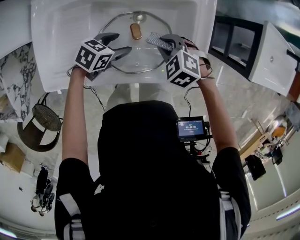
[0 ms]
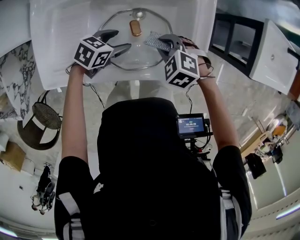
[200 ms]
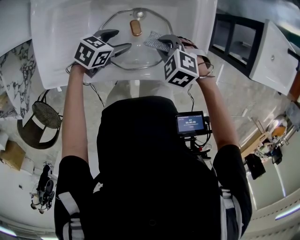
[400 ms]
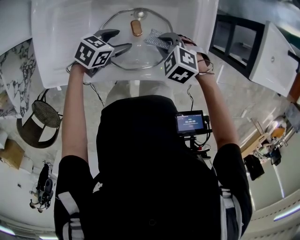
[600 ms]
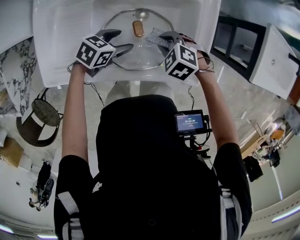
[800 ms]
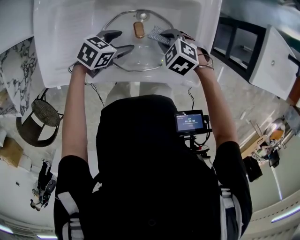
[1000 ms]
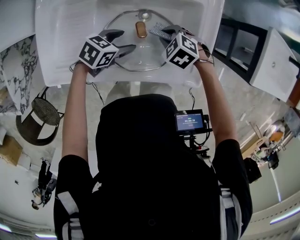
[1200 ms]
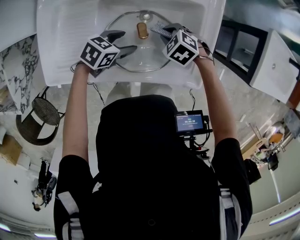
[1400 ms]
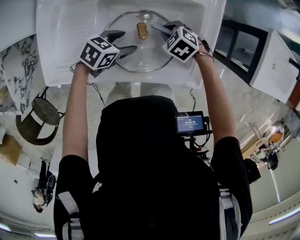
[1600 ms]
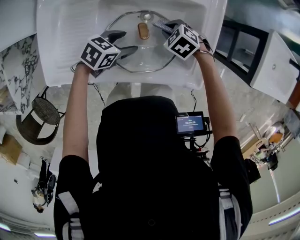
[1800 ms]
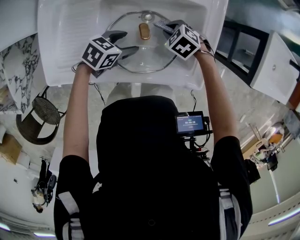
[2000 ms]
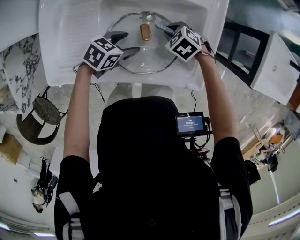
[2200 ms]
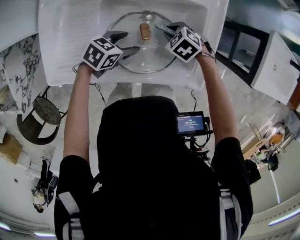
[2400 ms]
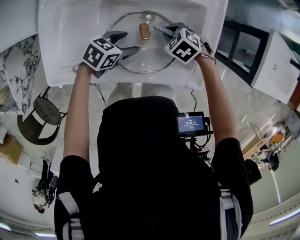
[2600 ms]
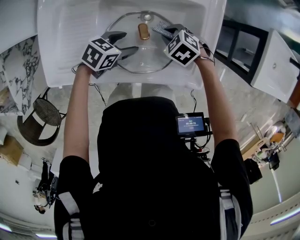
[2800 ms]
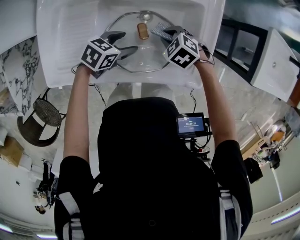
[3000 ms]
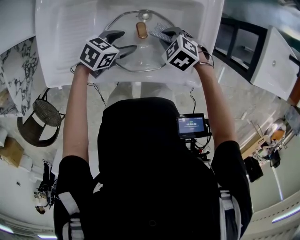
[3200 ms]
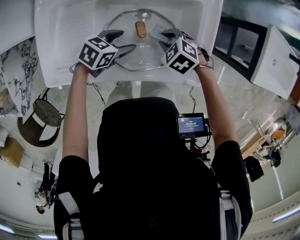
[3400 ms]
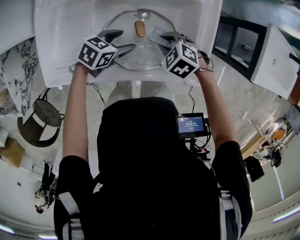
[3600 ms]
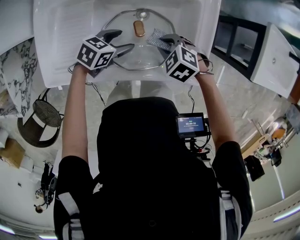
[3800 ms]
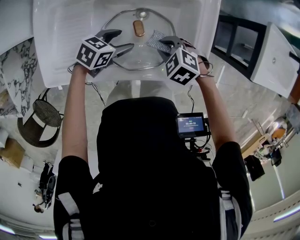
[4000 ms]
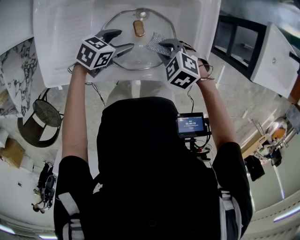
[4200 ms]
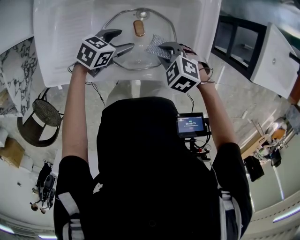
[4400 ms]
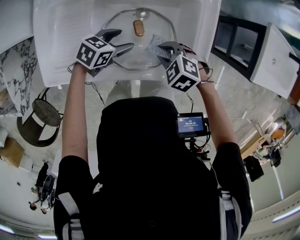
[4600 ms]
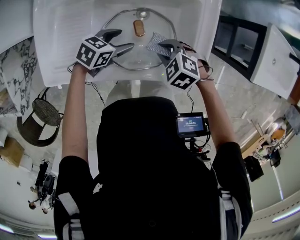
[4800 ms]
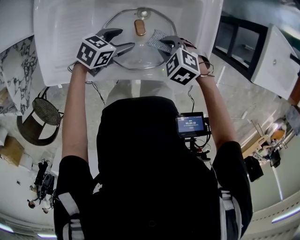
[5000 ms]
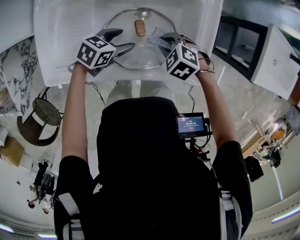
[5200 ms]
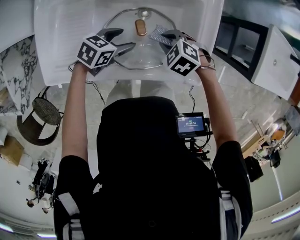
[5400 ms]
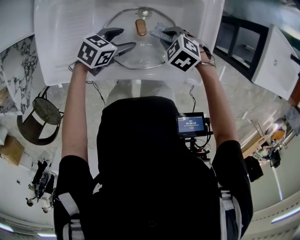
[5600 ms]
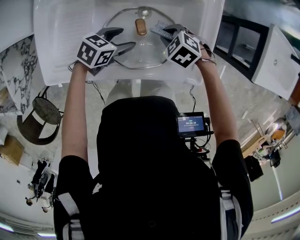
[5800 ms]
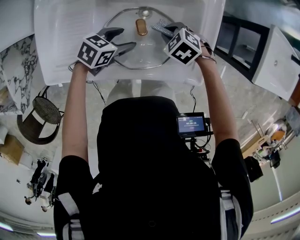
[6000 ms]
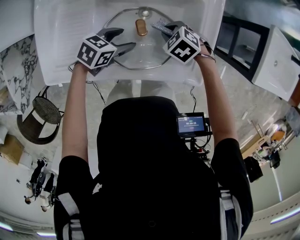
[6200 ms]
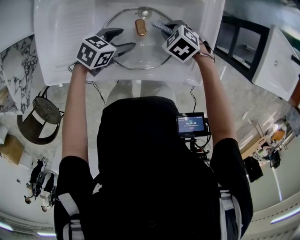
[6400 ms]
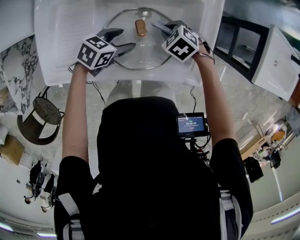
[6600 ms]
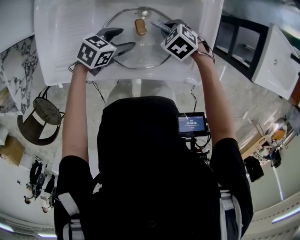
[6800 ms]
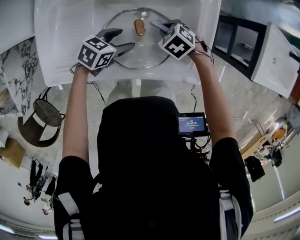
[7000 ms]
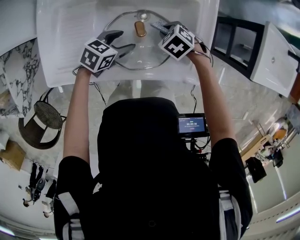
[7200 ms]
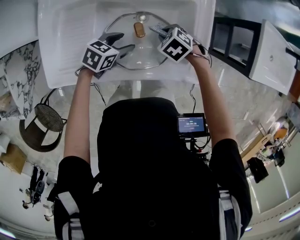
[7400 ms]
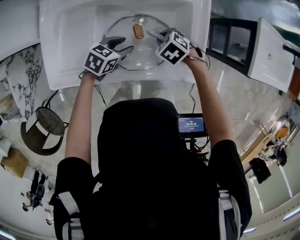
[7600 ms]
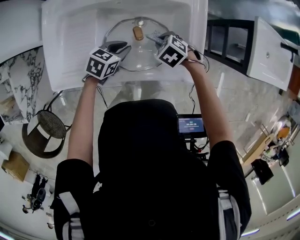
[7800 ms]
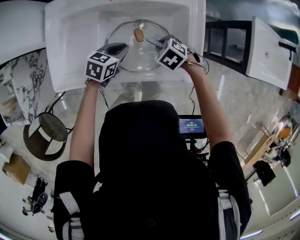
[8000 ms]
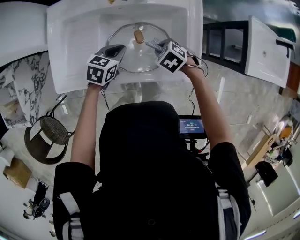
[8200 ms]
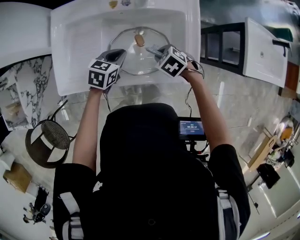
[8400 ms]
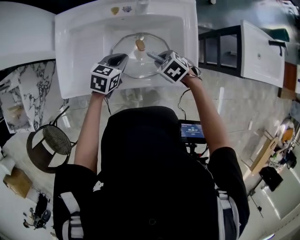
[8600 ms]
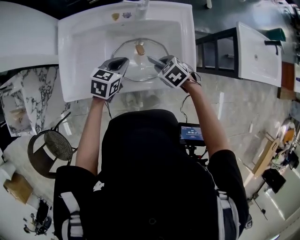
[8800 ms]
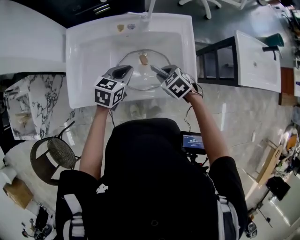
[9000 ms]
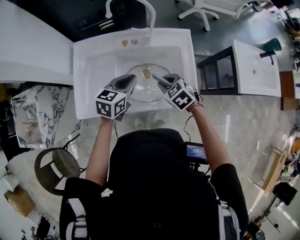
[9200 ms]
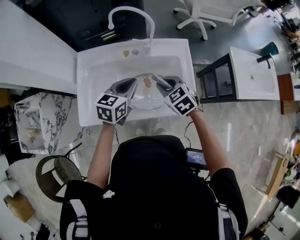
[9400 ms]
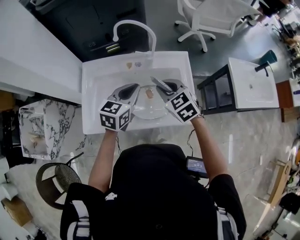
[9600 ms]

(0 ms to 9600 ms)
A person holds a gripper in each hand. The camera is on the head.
0 ms - 1600 ms: The right gripper moves downward, some 5 cm.
1600 ms - 3200 ms: The grippers stay close to where they were, moving slightly.
3200 ms - 4800 ms: The right gripper moves about 5 cm.
4800 ms - 6400 ms: The right gripper shifts by some 10 cm.
6400 ms - 8000 ms: The left gripper closes. Meanwhile the right gripper changes place by some 5 cm.
8000 ms - 9600 ms: The two grippers go about 25 cm upward. The right gripper points its fingers roughly 40 degrees further upward, while the left gripper swivels approximately 30 degrees.

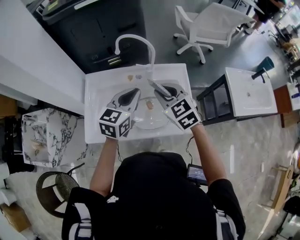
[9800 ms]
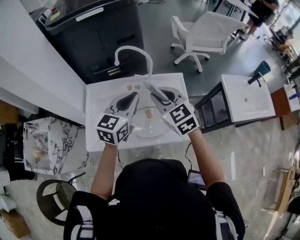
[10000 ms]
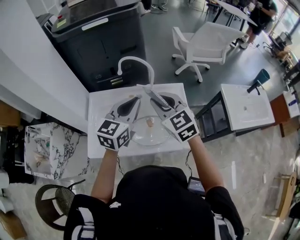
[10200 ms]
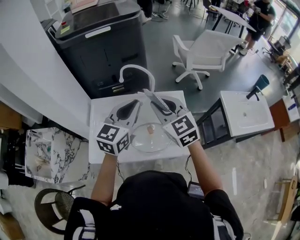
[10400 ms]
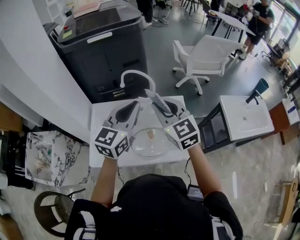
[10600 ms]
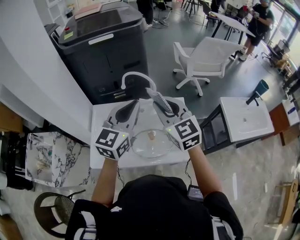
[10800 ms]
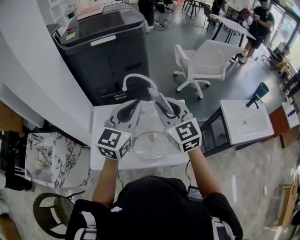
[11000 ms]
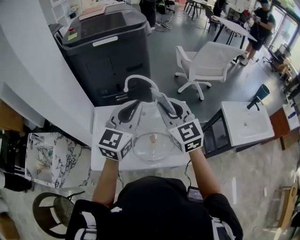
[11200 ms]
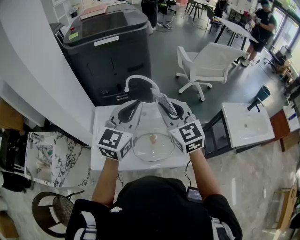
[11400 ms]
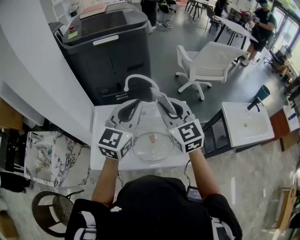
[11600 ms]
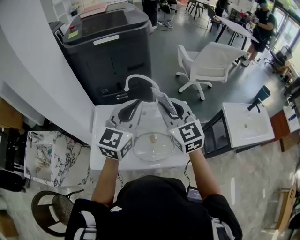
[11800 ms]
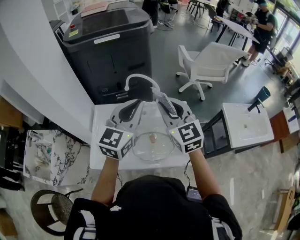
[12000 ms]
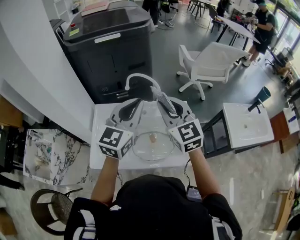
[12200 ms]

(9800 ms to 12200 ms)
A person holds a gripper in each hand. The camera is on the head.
9800 ms - 11000 ms: Both grippers move upward, approximately 15 cm. The left gripper turns by about 20 degrees. The right gripper rotates approximately 20 degrees.
11000 ms - 12200 ms: The grippers stay close to where they were, moving slightly.

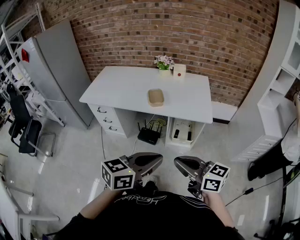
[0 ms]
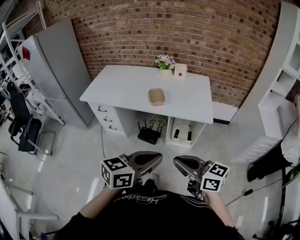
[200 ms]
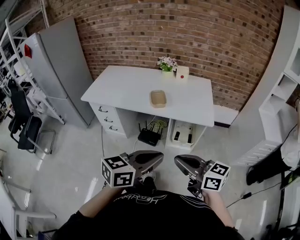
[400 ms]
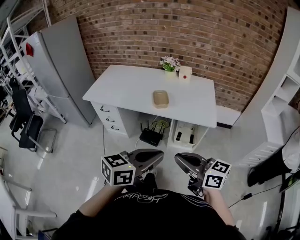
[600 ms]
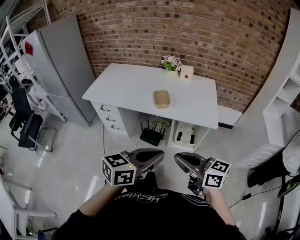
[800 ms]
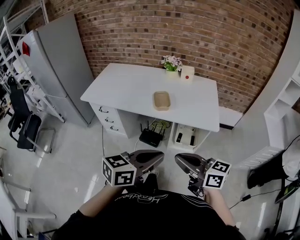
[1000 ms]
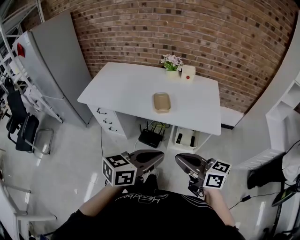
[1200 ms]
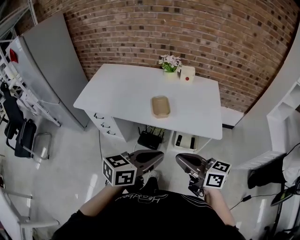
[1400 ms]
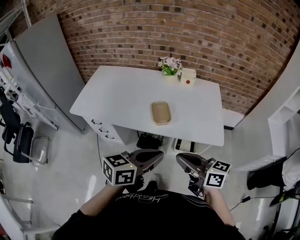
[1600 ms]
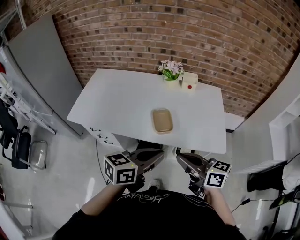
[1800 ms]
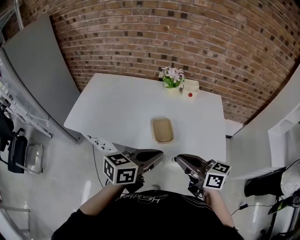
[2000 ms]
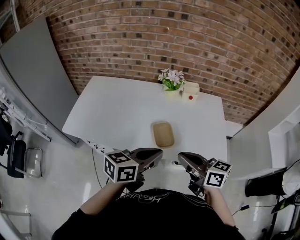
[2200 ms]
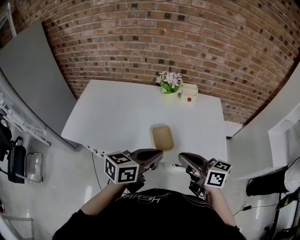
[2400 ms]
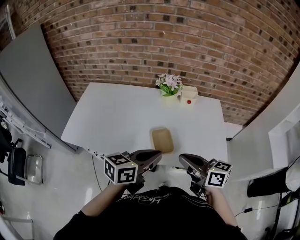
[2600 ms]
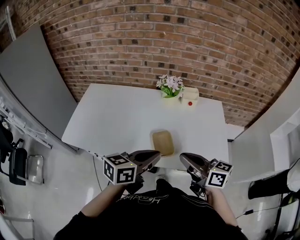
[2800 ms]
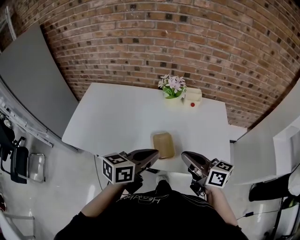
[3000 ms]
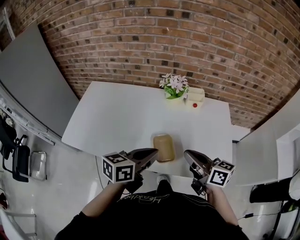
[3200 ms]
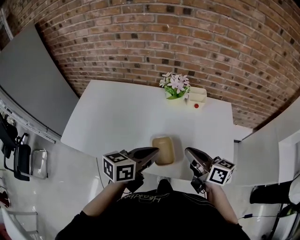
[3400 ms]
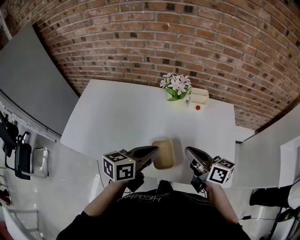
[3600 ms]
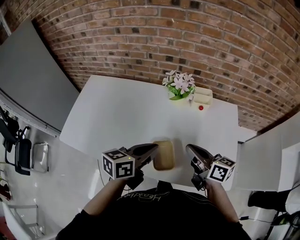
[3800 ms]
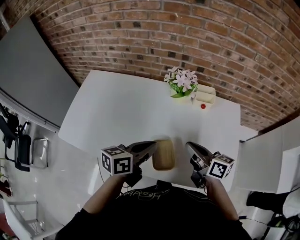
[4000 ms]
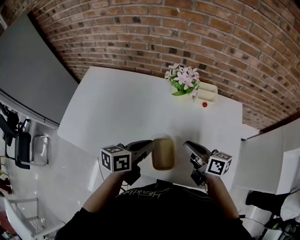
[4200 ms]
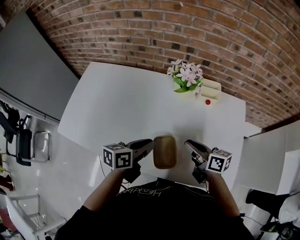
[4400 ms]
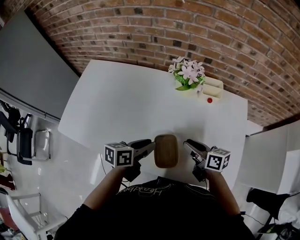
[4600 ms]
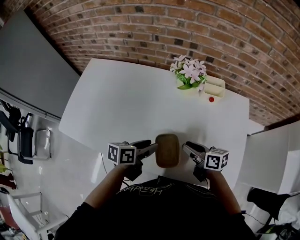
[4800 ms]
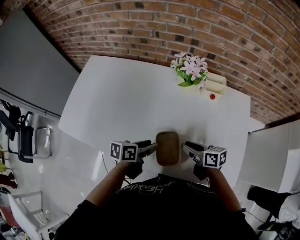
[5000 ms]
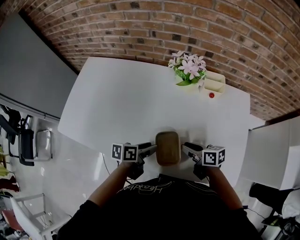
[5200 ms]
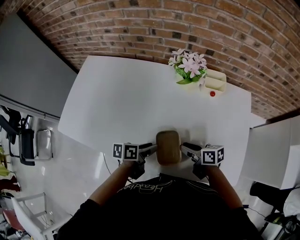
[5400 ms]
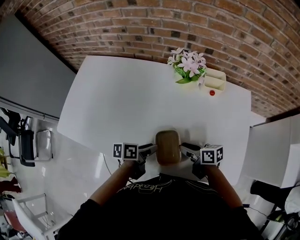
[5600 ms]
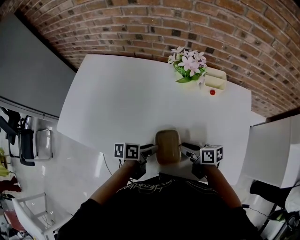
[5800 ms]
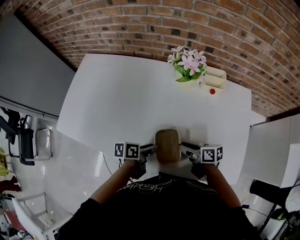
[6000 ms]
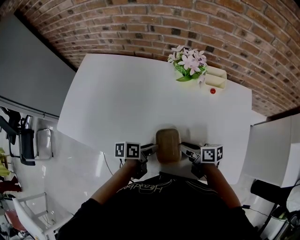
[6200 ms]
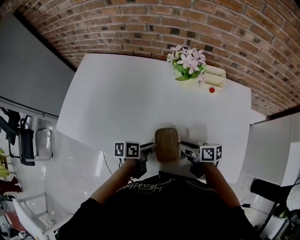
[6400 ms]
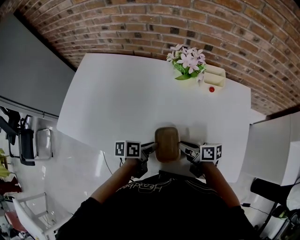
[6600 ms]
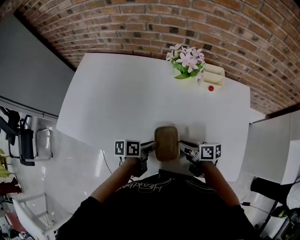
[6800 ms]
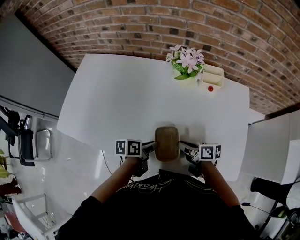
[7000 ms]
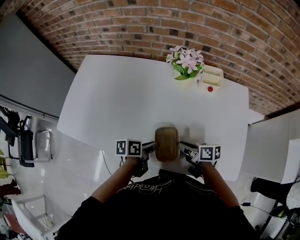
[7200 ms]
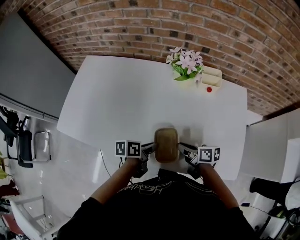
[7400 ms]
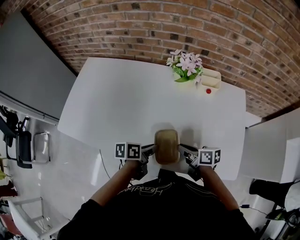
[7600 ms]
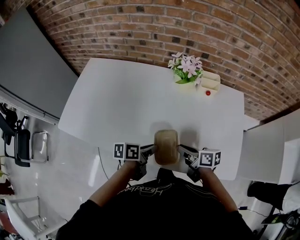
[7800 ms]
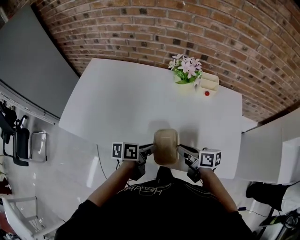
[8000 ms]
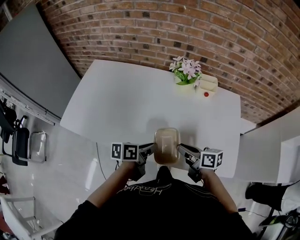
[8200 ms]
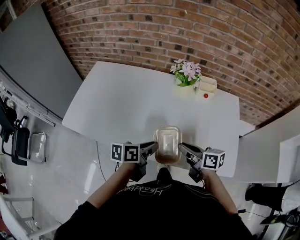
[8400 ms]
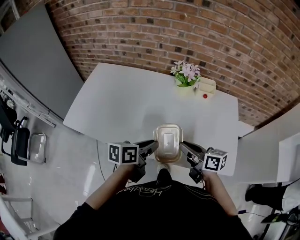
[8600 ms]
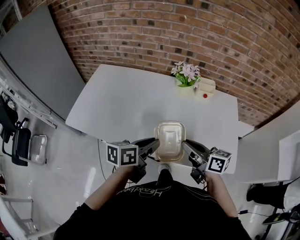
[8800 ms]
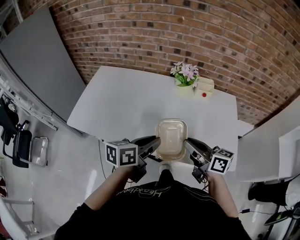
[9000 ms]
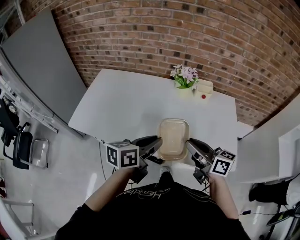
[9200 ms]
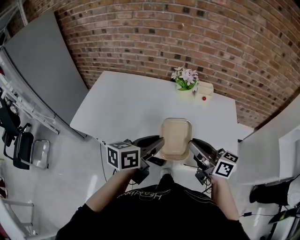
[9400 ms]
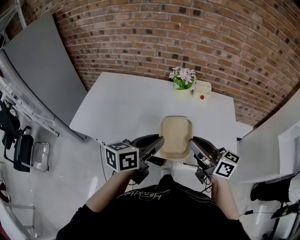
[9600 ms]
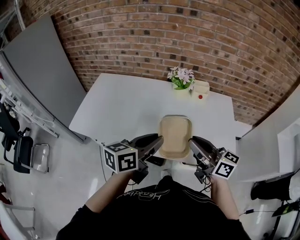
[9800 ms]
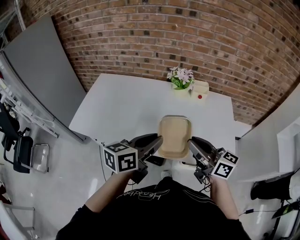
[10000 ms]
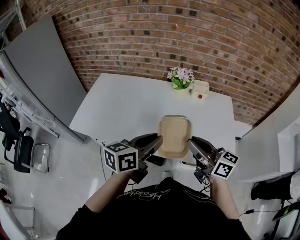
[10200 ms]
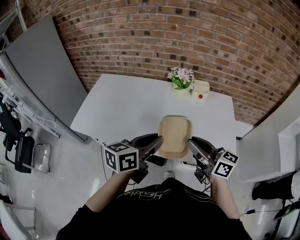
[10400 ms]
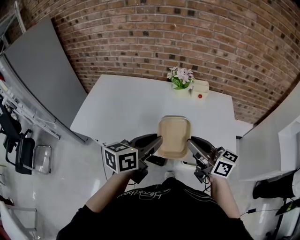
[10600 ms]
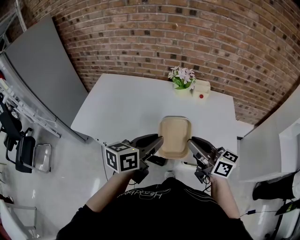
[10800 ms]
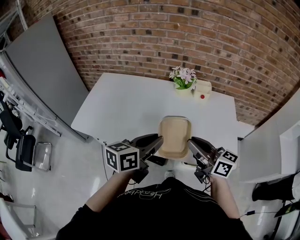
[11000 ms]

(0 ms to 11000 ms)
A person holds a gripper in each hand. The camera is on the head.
0 ms - 1600 ms: The grippers both shift forward by approximately 25 cm.
1600 ms - 3200 ms: The grippers both shift forward by about 25 cm.
3200 ms - 4800 ms: The grippers both shift downward and forward by approximately 20 cm. The right gripper swivels roughly 20 degrees, and opens; the left gripper rotates roughly 30 degrees, and opens up.
4800 ms - 6200 ms: The two grippers go approximately 5 cm downward.
6200 ms - 7800 ms: The left gripper moves approximately 5 cm, and closes, while the right gripper shifts by approximately 5 cm.
7800 ms - 9400 ms: The left gripper is displaced upward by about 20 cm, and changes its angle by about 30 degrees; the right gripper heads upward and backward, covering some 25 cm, and rotates approximately 40 degrees.
9400 ms - 11000 ms: The grippers make only small movements.

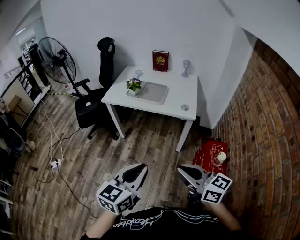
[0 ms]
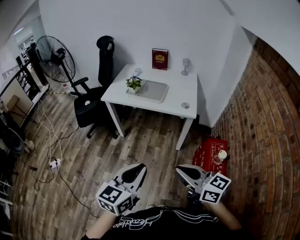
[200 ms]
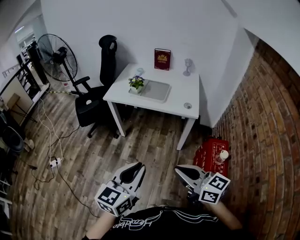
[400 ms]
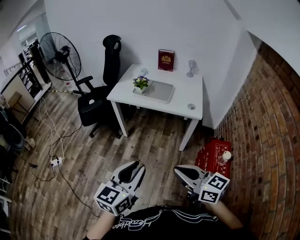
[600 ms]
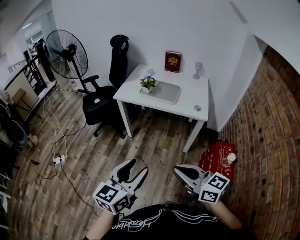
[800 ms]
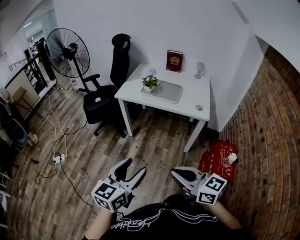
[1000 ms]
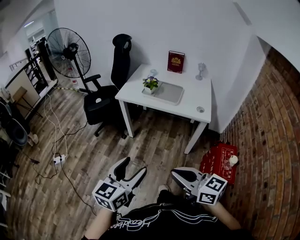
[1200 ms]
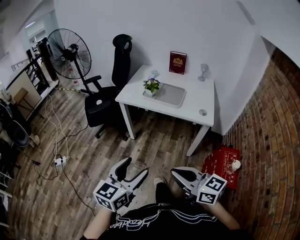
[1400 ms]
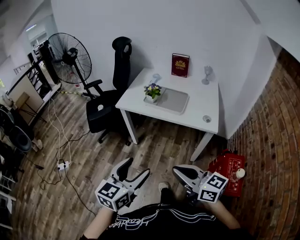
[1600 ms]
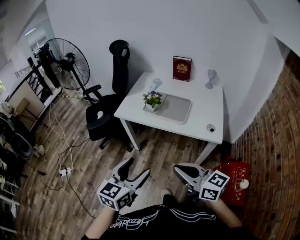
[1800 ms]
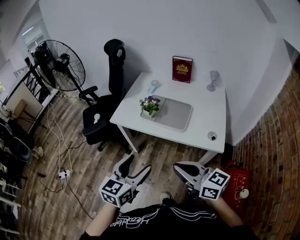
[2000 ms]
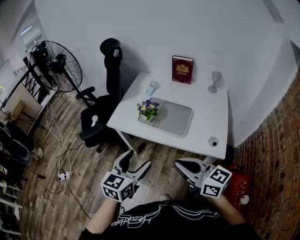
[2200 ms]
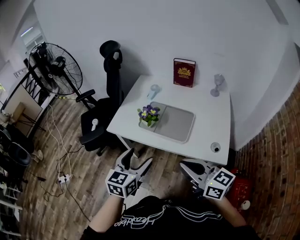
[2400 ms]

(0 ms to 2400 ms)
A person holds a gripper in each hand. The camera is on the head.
0 ms - 1200 ms: Both grippers travel together to the left, some 10 cm. The left gripper opens its fingers.
1200 ms - 2400 ms: Both grippers move forward, roughly 35 cm.
